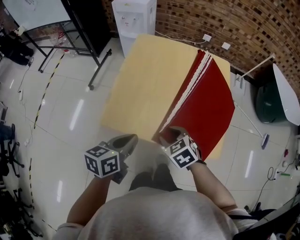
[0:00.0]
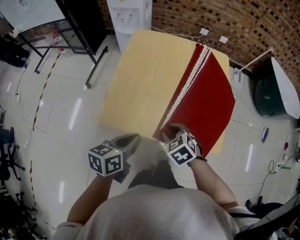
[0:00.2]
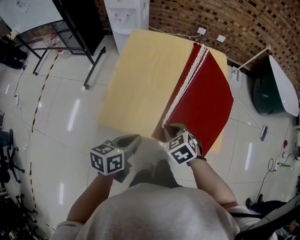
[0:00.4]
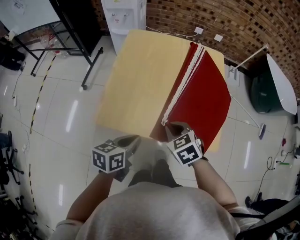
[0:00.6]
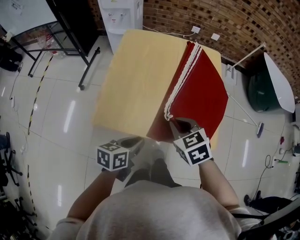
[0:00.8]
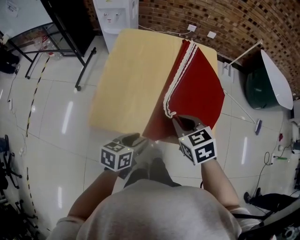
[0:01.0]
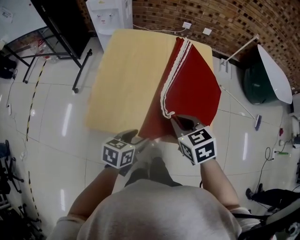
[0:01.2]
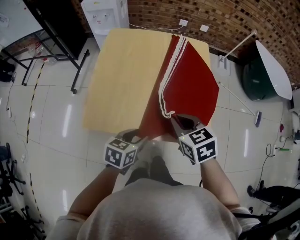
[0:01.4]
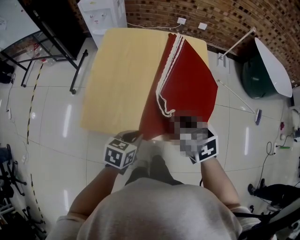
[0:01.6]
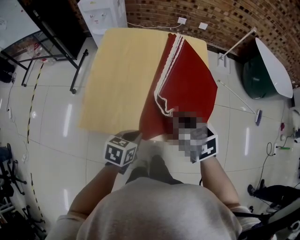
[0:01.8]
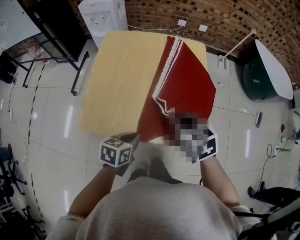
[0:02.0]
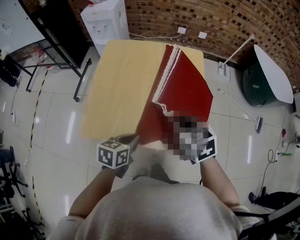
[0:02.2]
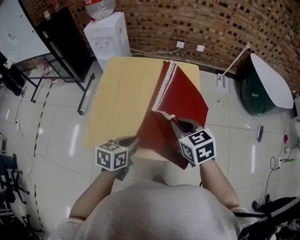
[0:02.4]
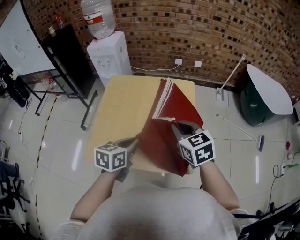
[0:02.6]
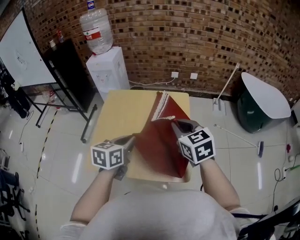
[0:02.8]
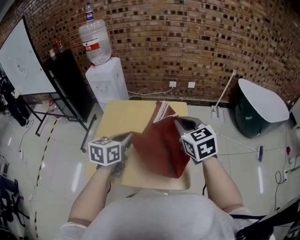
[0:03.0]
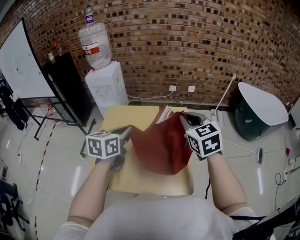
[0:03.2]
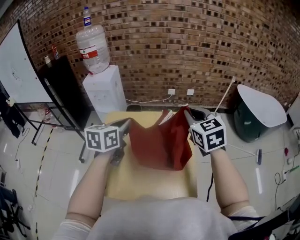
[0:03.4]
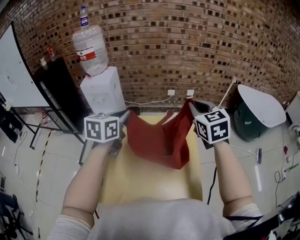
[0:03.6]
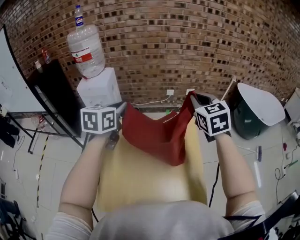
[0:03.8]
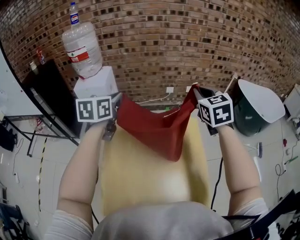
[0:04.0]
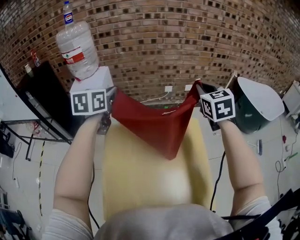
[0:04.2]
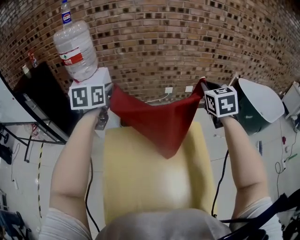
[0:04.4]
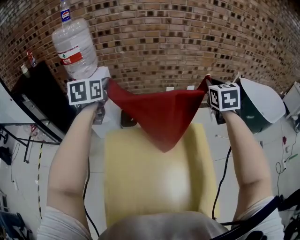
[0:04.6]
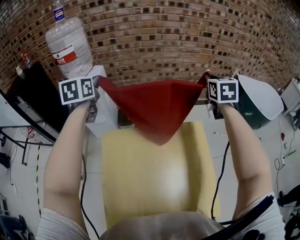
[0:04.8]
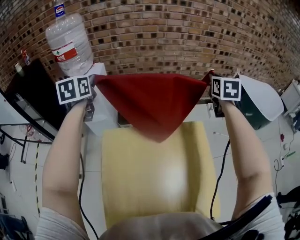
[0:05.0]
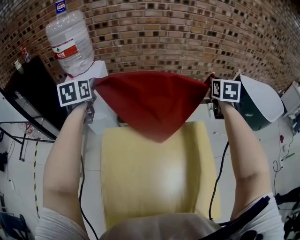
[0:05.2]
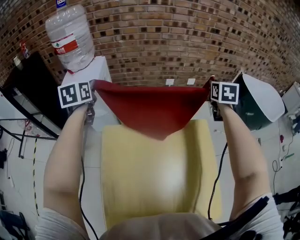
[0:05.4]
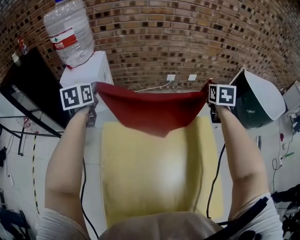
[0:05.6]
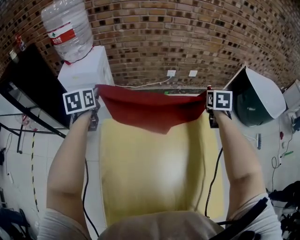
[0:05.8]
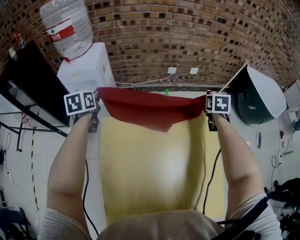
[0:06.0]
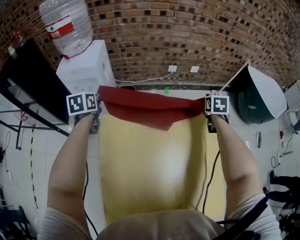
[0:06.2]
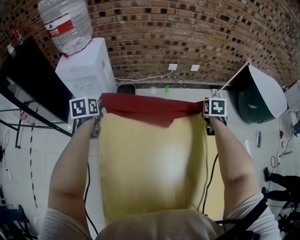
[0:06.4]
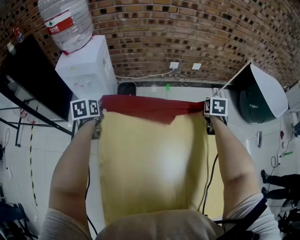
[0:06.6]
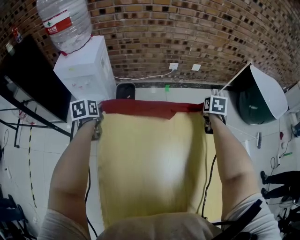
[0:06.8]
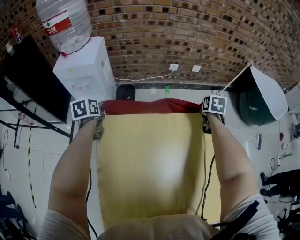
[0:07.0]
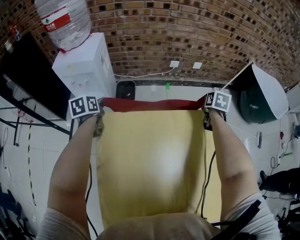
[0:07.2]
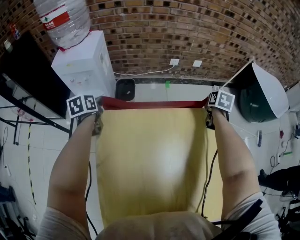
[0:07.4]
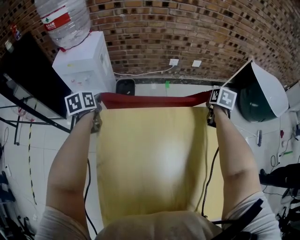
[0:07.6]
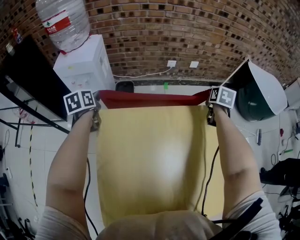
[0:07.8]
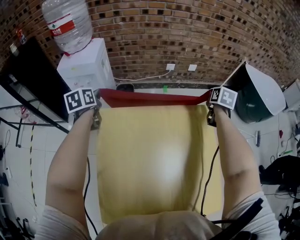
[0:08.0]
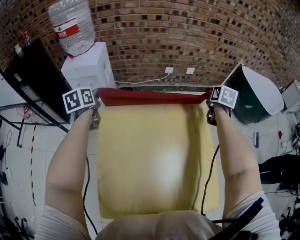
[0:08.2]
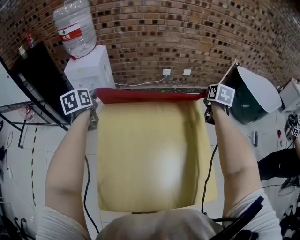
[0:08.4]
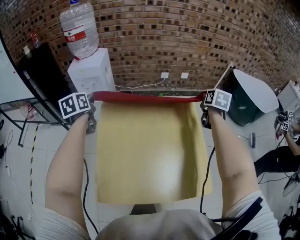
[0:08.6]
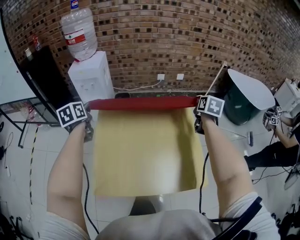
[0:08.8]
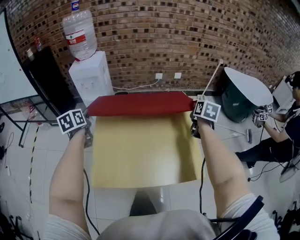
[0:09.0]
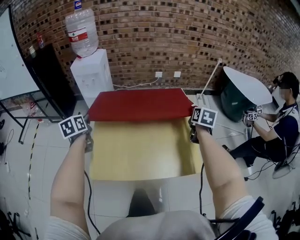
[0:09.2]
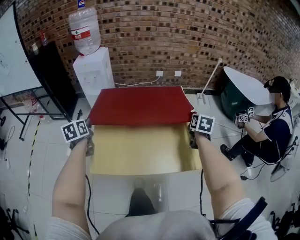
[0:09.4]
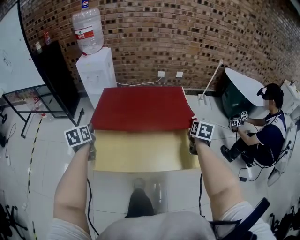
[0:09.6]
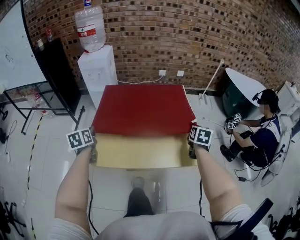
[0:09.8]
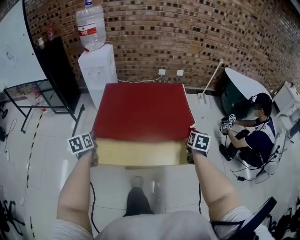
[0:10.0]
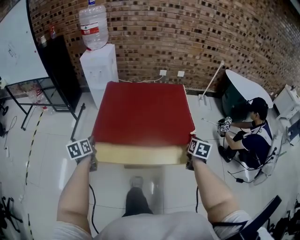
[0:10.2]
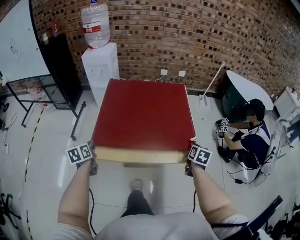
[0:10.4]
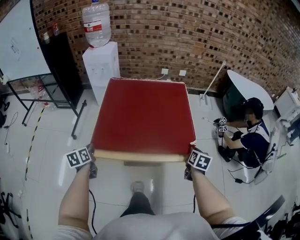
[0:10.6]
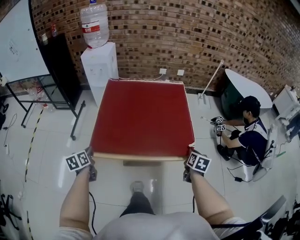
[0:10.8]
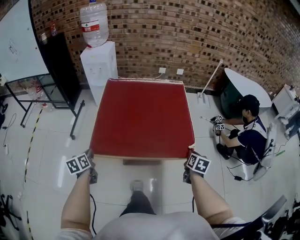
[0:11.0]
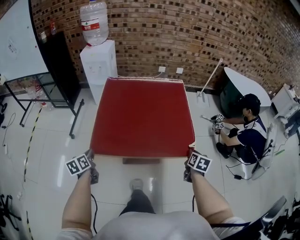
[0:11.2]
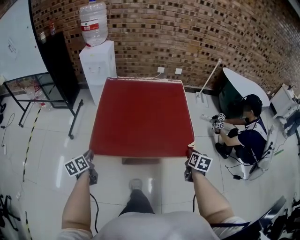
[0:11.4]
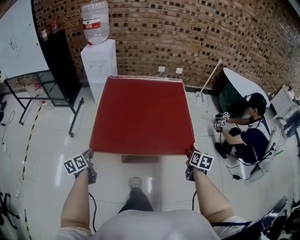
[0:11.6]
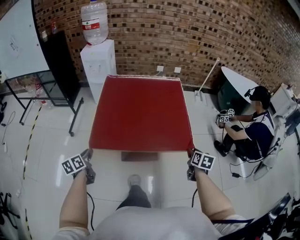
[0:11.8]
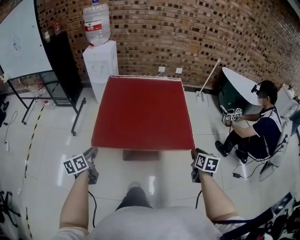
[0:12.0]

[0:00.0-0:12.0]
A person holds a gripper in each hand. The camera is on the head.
0.0 to 1.6 s: The left gripper is displaced to the right and downward by roughly 15 cm, rotates about 20 degrees, and opens and closes again; the right gripper is displaced to the right and upward by some 15 cm, rotates approximately 30 degrees, and closes.
1.6 to 3.0 s: The left gripper travels upward and forward by about 30 cm, and rotates roughly 20 degrees, while the right gripper shifts approximately 25 cm upward, forward and to the right, and changes its angle by roughly 20 degrees.
3.0 to 4.4 s: The right gripper shifts some 35 cm forward, and rotates approximately 30 degrees. Meanwhile the left gripper is displaced forward and to the left by roughly 50 cm.
4.4 to 6.0 s: The right gripper is displaced downward by about 25 cm, and changes its angle by roughly 30 degrees. The left gripper is displaced downward and to the left by some 25 cm.
6.0 to 7.6 s: The right gripper shifts about 5 cm downward. Meanwhile the left gripper goes about 10 cm downward.
7.6 to 9.0 s: The right gripper moves backward, roughly 30 cm; the left gripper heads backward and upward, covering approximately 35 cm.
9.0 to 10.4 s: The grippers both shift backward and downward by roughly 30 cm.
10.4 to 12.0 s: Both grippers travel together backward, about 10 cm.

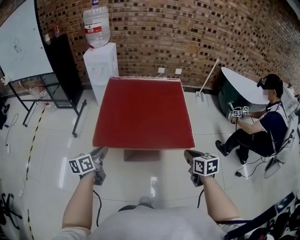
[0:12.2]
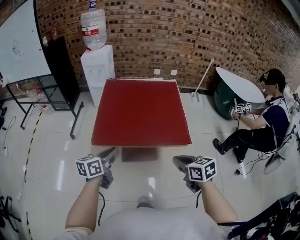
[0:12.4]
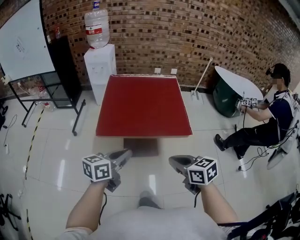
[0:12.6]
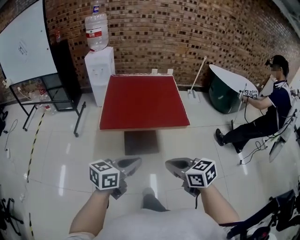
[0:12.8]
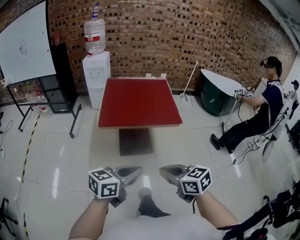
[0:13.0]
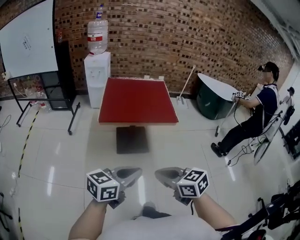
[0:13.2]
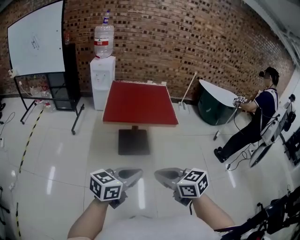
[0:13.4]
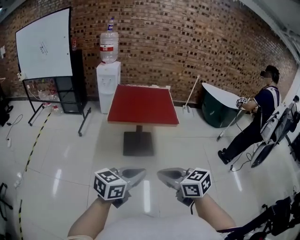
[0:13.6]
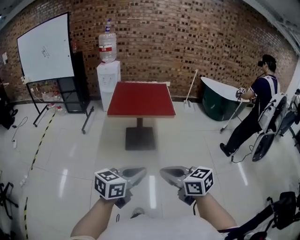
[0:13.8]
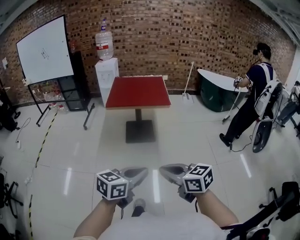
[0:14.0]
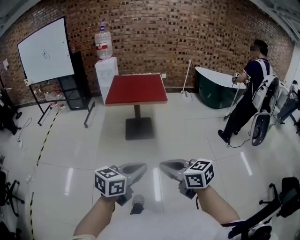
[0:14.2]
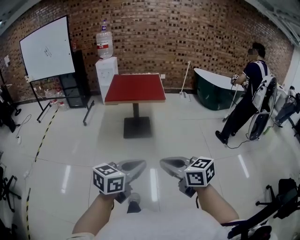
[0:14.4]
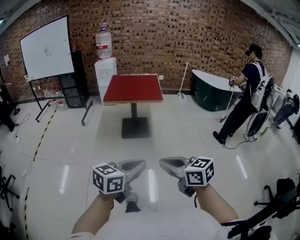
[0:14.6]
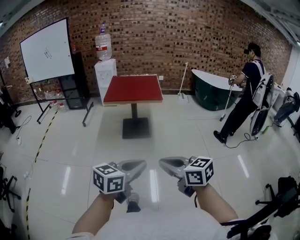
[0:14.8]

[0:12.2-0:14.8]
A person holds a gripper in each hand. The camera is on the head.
12.2 to 13.4 s: The left gripper travels backward by about 40 cm, and changes its angle by roughly 40 degrees. The right gripper travels backward and to the left by about 50 cm, and swivels roughly 30 degrees.
13.4 to 14.8 s: The two grippers go about 35 cm backward and to the right.

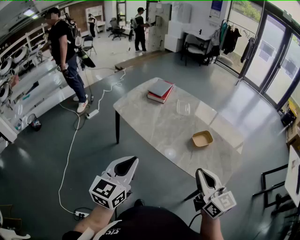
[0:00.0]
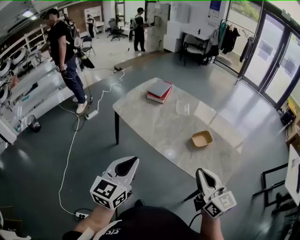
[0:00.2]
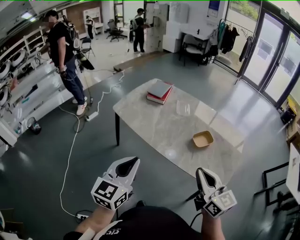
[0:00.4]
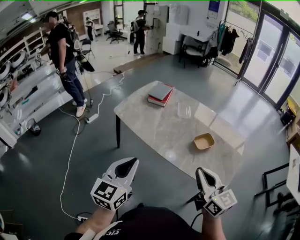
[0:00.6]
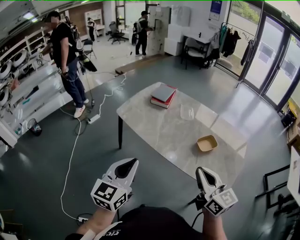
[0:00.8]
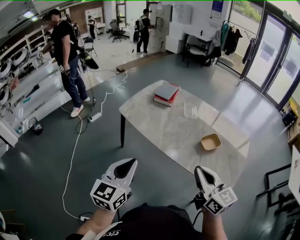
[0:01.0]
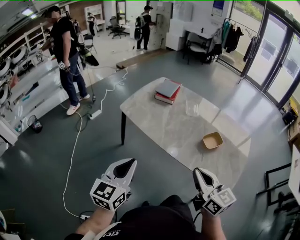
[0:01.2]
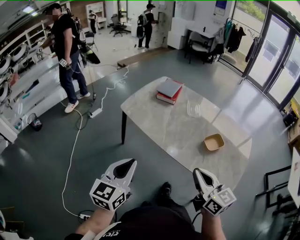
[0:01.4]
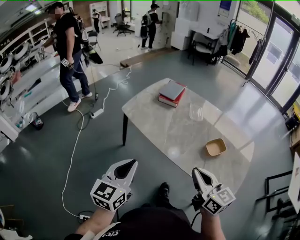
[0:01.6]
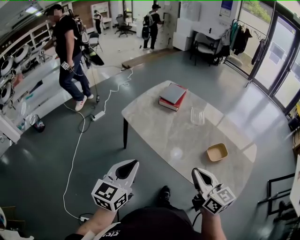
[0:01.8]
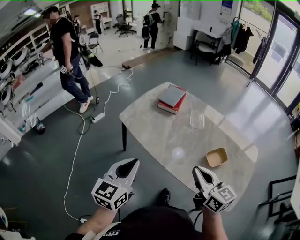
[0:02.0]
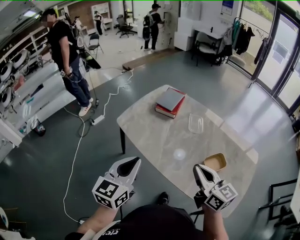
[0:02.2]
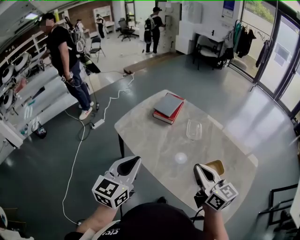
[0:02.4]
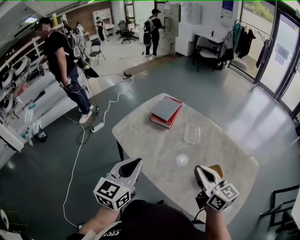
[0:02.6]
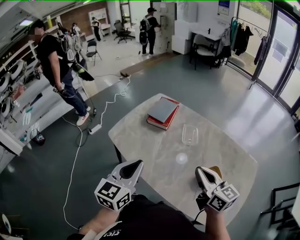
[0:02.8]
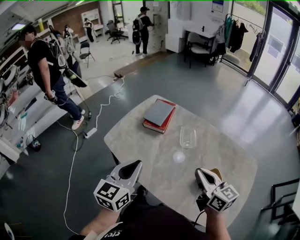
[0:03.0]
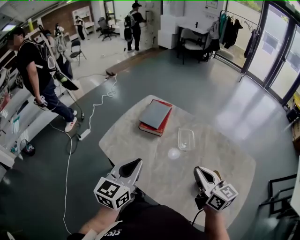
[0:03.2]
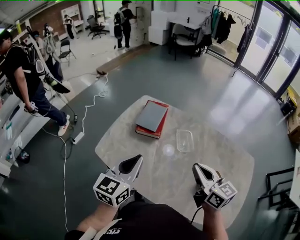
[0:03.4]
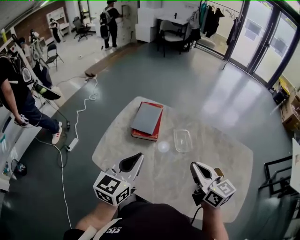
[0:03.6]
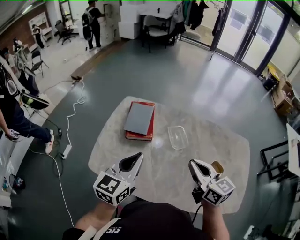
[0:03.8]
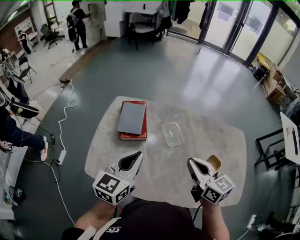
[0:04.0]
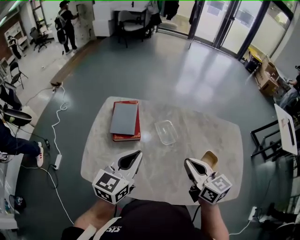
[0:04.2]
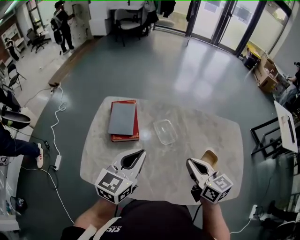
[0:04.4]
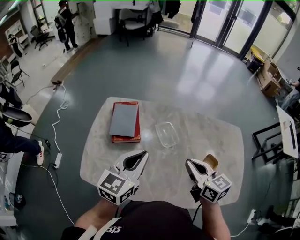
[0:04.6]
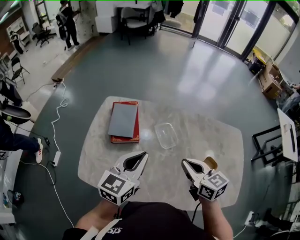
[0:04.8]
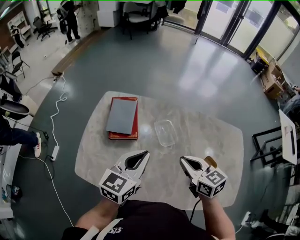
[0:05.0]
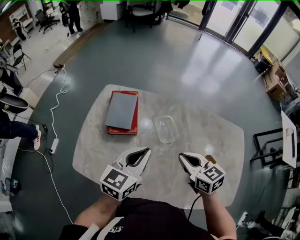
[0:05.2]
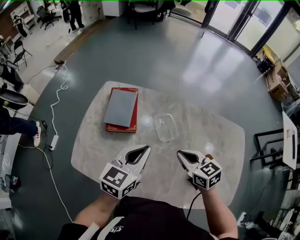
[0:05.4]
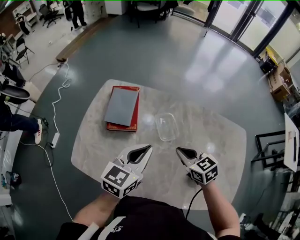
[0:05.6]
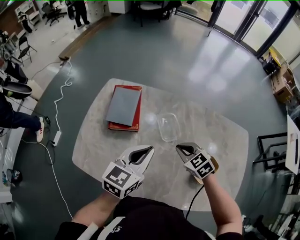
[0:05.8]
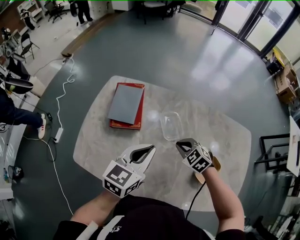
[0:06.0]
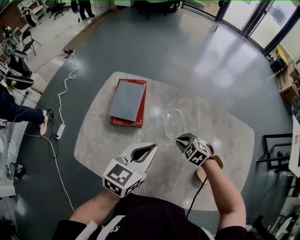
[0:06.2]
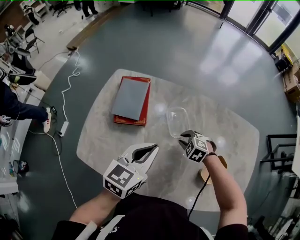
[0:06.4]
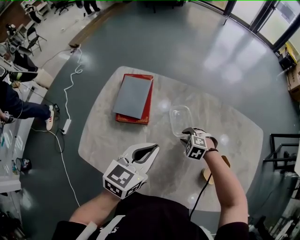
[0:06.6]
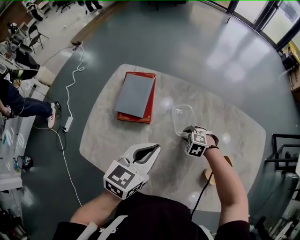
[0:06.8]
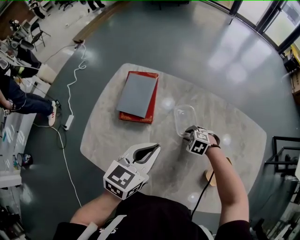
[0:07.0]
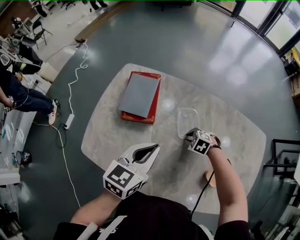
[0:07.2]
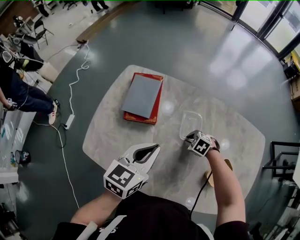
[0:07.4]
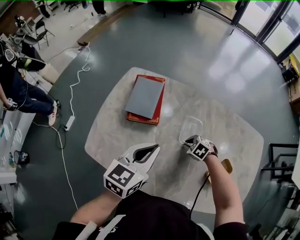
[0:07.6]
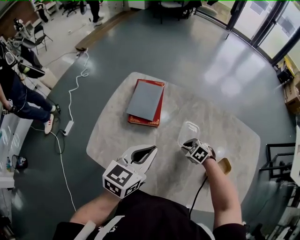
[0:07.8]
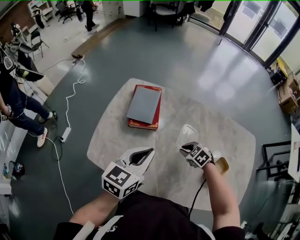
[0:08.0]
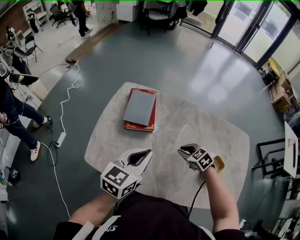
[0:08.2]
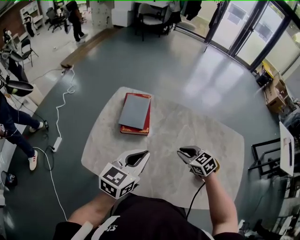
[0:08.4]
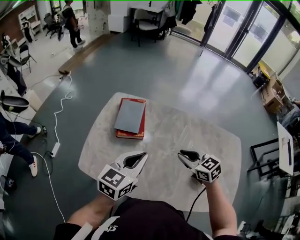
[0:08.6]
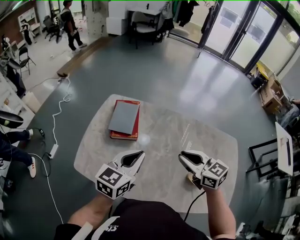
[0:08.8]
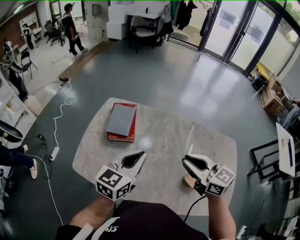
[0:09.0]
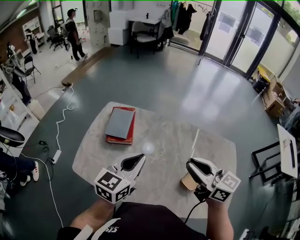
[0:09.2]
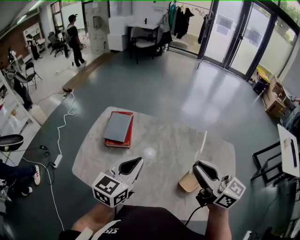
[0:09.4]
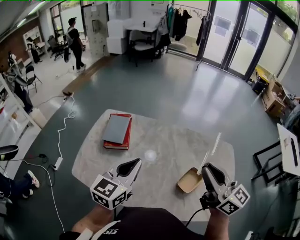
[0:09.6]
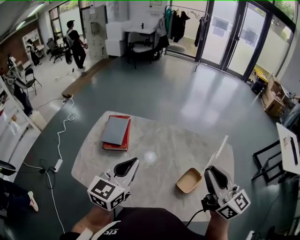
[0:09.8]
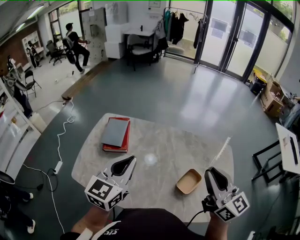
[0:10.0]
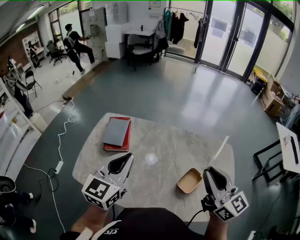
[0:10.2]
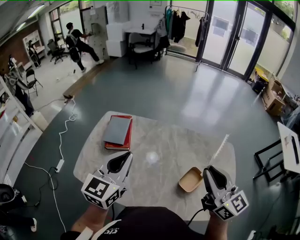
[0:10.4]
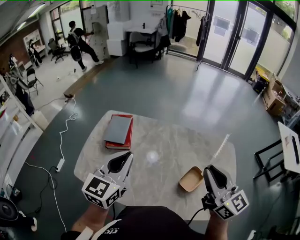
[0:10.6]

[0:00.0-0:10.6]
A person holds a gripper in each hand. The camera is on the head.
0.0 to 1.6 s: Both grippers move to the left and forward, about 10 cm.
1.6 to 3.0 s: The grippers both shift forward and to the right by roughly 30 cm.
3.0 to 4.6 s: The right gripper changes place by about 10 cm, and turns by about 30 degrees, while the left gripper ends up approximately 20 cm from where it was, and rotates some 40 degrees.
4.6 to 6.0 s: The right gripper shifts about 20 cm downward and forward, and tips its fingers downward by some 40 degrees. The left gripper shifts some 5 cm downward.
6.0 to 7.6 s: The right gripper heads downward, covering roughly 10 cm, and rotates some 20 degrees; the left gripper moves about 5 cm.
7.6 to 9.0 s: The left gripper shifts roughly 10 cm upward. Meanwhile the right gripper travels upward by some 35 cm, and angles its fingers upward, by about 60 degrees.
9.0 to 10.6 s: The left gripper moves upward, approximately 10 cm. The right gripper moves to the right, upward and backward, approximately 15 cm, and rotates some 30 degrees.
